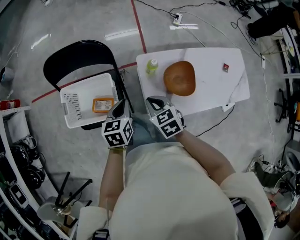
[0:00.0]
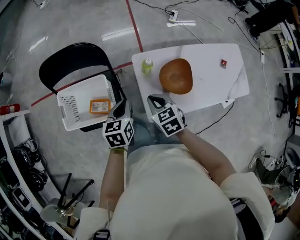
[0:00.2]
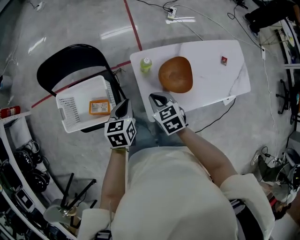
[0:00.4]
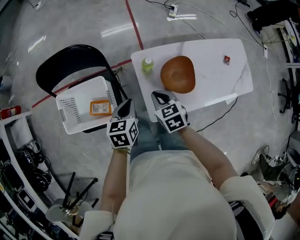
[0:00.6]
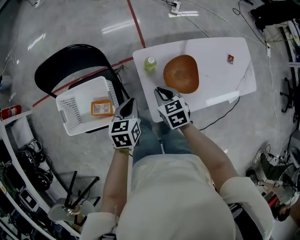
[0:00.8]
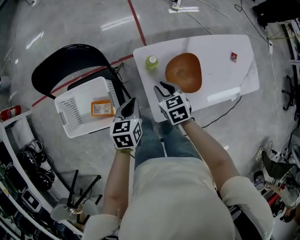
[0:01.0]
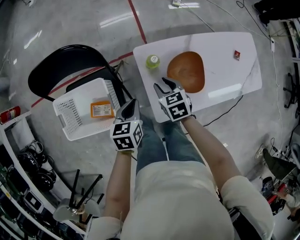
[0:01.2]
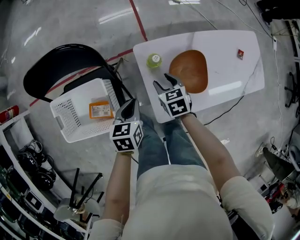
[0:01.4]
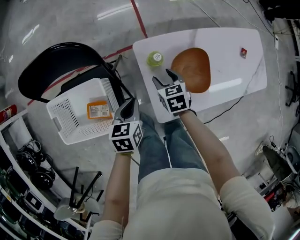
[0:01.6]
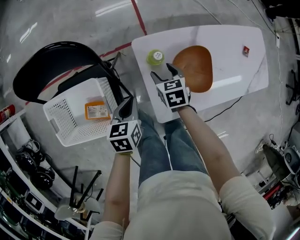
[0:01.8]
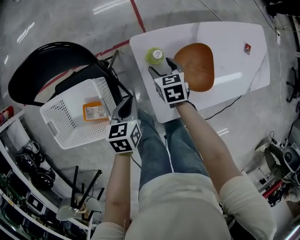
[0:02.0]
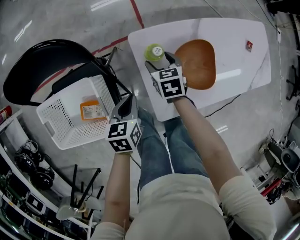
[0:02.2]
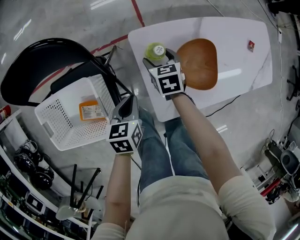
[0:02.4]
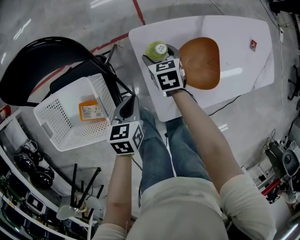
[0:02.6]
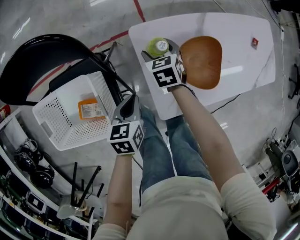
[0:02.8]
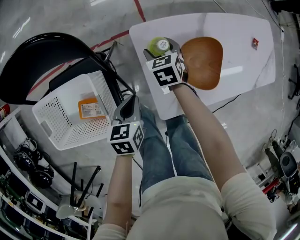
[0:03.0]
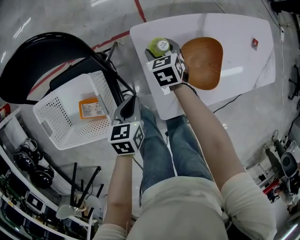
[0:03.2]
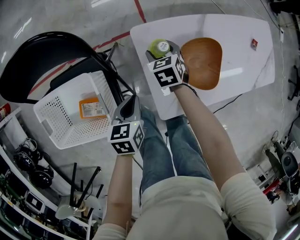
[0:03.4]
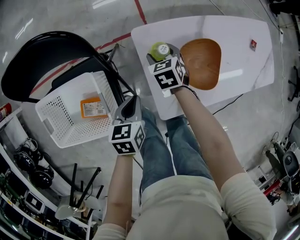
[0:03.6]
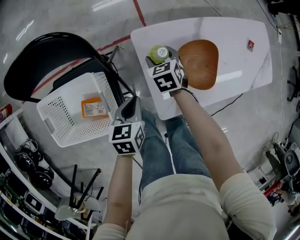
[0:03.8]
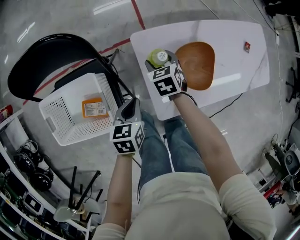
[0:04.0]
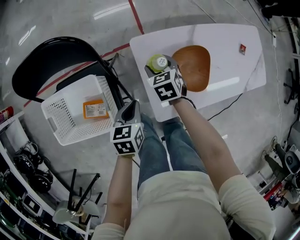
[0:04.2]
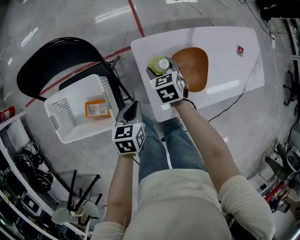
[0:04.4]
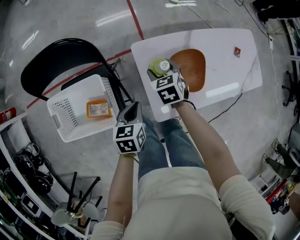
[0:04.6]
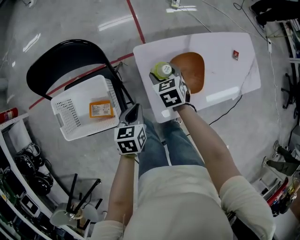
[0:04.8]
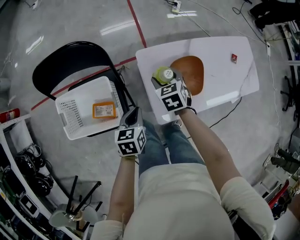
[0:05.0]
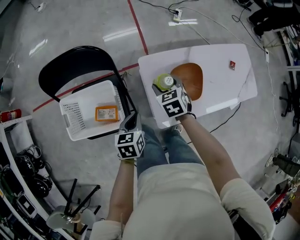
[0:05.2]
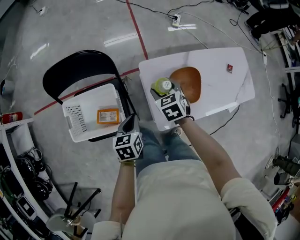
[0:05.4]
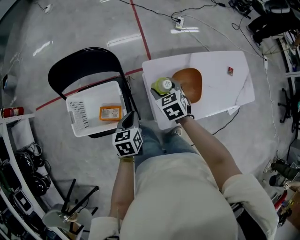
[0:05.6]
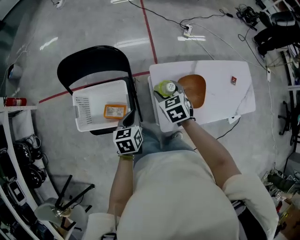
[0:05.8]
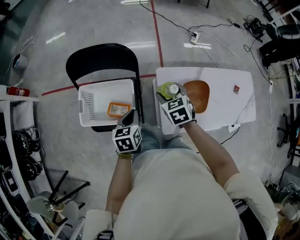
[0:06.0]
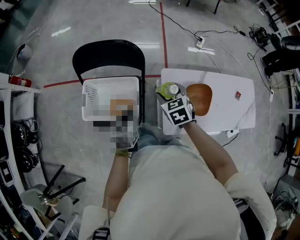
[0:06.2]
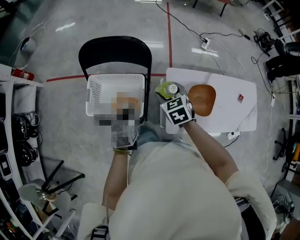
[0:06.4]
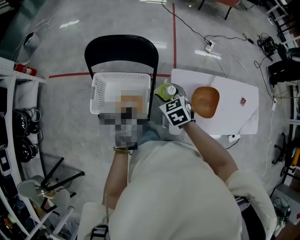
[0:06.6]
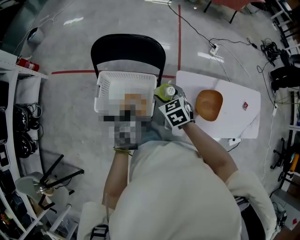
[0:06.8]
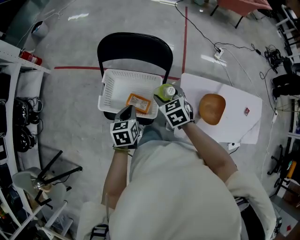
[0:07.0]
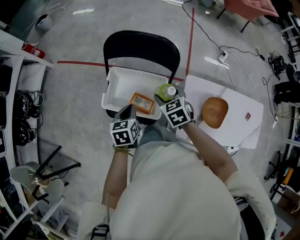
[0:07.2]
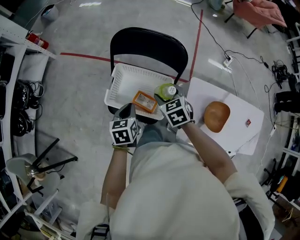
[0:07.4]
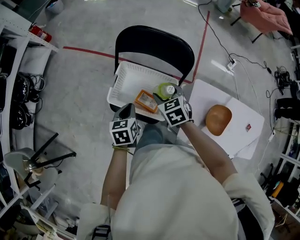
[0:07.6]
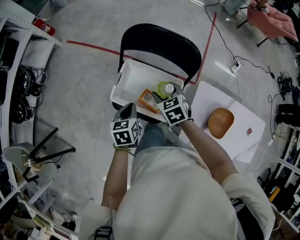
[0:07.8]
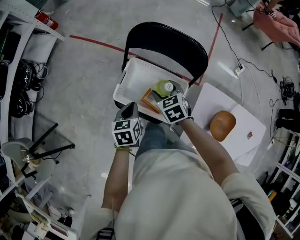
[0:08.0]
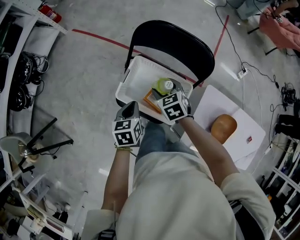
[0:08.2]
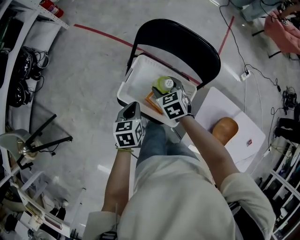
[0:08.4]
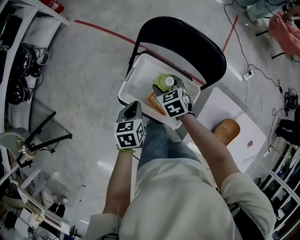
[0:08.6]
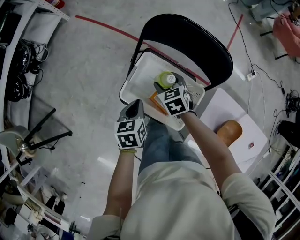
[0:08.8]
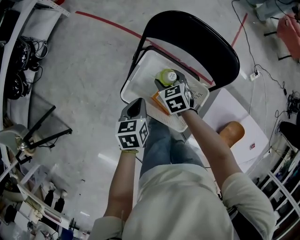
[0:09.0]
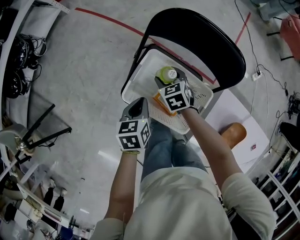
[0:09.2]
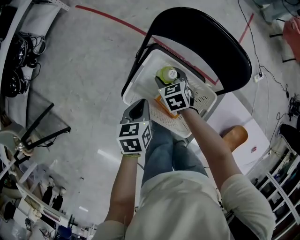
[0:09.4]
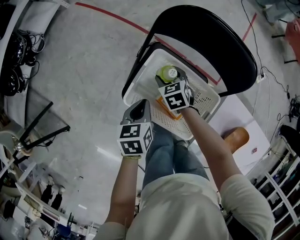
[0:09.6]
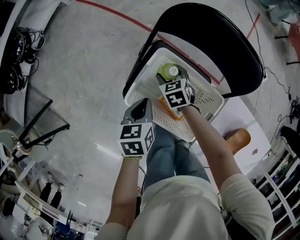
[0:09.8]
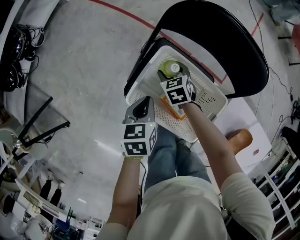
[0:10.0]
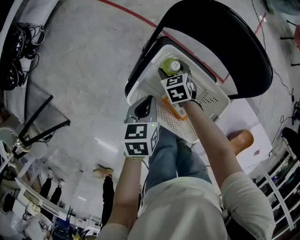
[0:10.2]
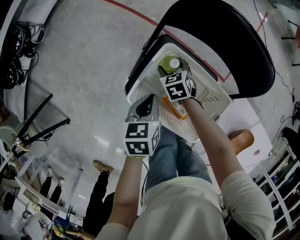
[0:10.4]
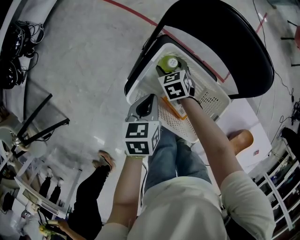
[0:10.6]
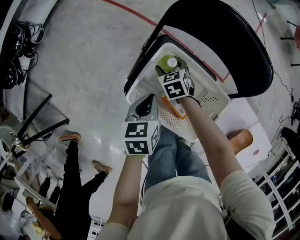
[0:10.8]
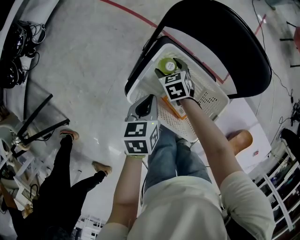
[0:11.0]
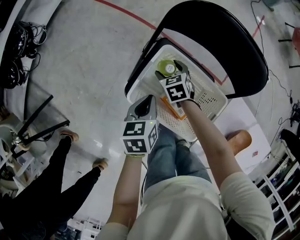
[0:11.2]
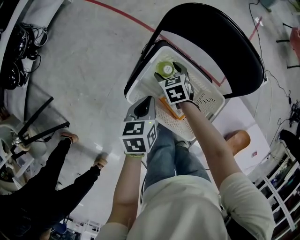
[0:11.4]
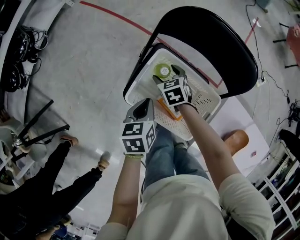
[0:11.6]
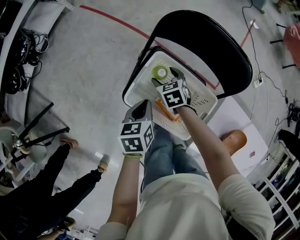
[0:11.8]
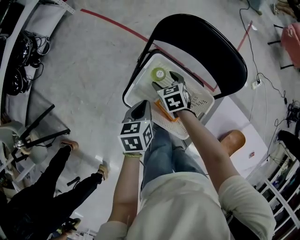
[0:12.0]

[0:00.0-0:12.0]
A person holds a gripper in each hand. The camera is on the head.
0:00.0 to 0:01.6: The right gripper shifts about 20 cm downward, forward and to the right, and opens up, while the left gripper travels downward by roughly 15 cm.
0:01.6 to 0:03.0: The right gripper travels forward and downward by roughly 10 cm. The left gripper moves downward, some 5 cm.
0:03.0 to 0:04.4: Both grippers move upward, roughly 10 cm.
0:04.4 to 0:06.0: The left gripper heads upward and to the left, covering approximately 15 cm. Meanwhile the right gripper goes some 20 cm upward, backward and to the left.
0:06.0 to 0:07.6: Both grippers travel together to the left, roughly 25 cm. The left gripper rotates roughly 20 degrees; the right gripper turns by some 30 degrees.
0:07.6 to 0:09.0: The left gripper moves downward, forward and to the left, about 10 cm. Meanwhile the right gripper goes some 20 cm downward, forward and to the left.
0:09.0 to 0:10.4: The right gripper goes roughly 15 cm downward. Meanwhile the left gripper shifts some 5 cm downward.
0:10.4 to 0:12.0: The right gripper travels upward by approximately 10 cm.

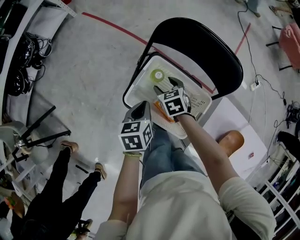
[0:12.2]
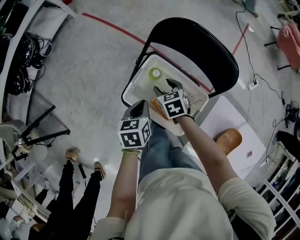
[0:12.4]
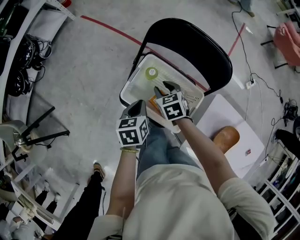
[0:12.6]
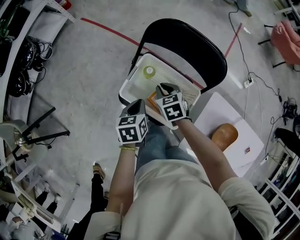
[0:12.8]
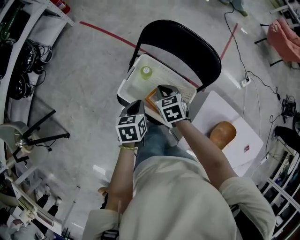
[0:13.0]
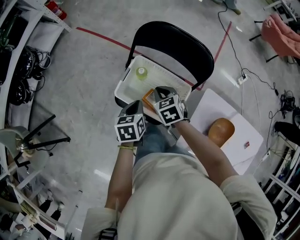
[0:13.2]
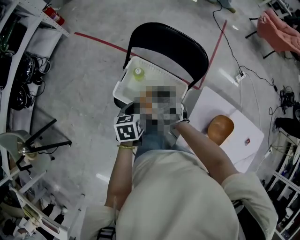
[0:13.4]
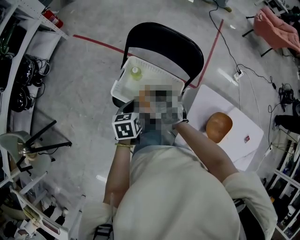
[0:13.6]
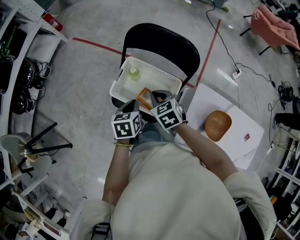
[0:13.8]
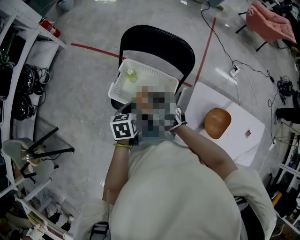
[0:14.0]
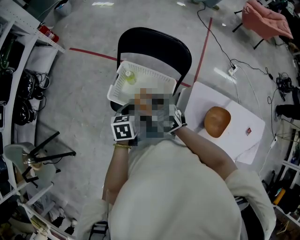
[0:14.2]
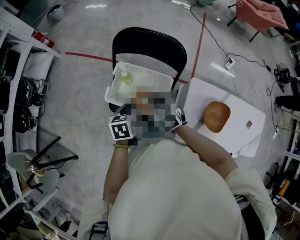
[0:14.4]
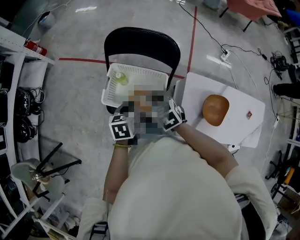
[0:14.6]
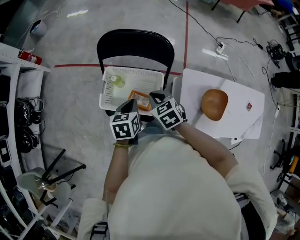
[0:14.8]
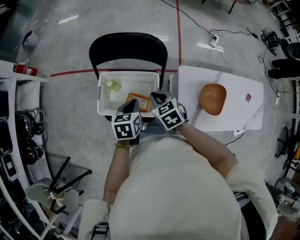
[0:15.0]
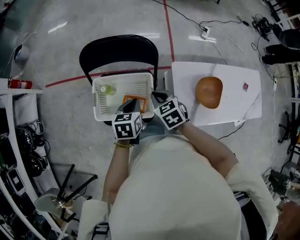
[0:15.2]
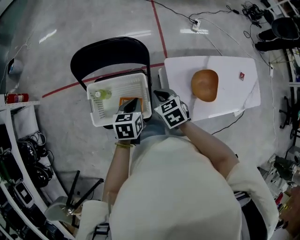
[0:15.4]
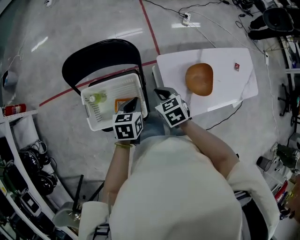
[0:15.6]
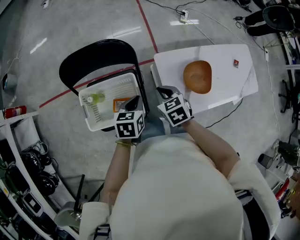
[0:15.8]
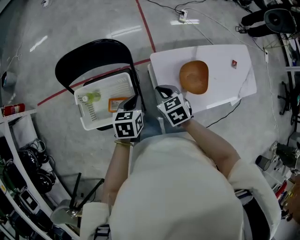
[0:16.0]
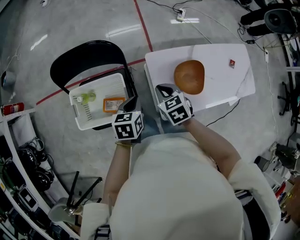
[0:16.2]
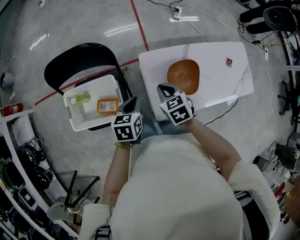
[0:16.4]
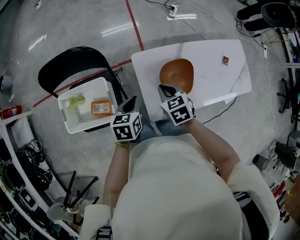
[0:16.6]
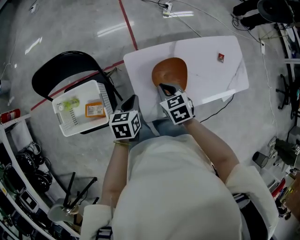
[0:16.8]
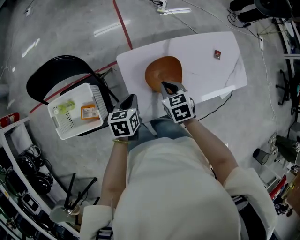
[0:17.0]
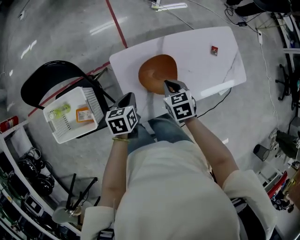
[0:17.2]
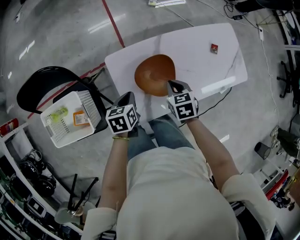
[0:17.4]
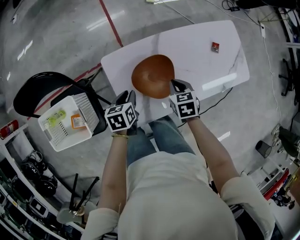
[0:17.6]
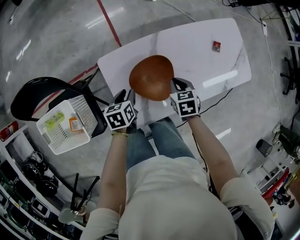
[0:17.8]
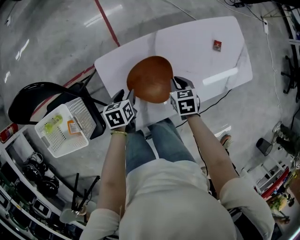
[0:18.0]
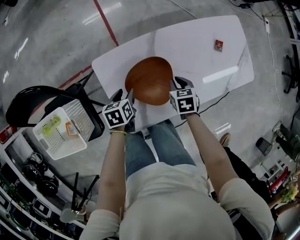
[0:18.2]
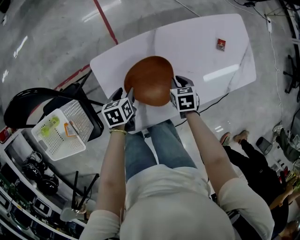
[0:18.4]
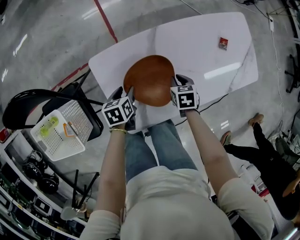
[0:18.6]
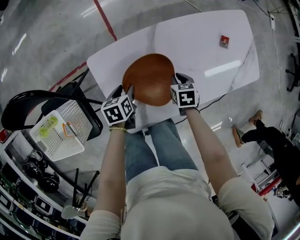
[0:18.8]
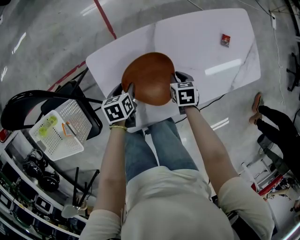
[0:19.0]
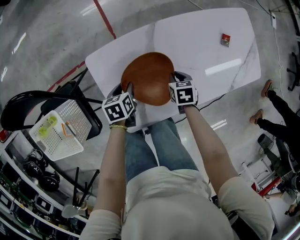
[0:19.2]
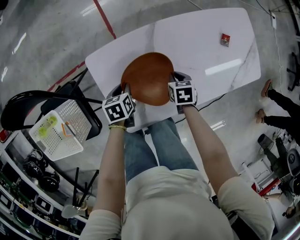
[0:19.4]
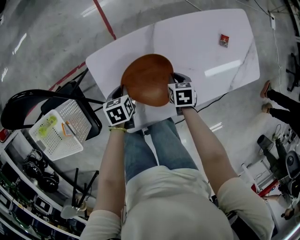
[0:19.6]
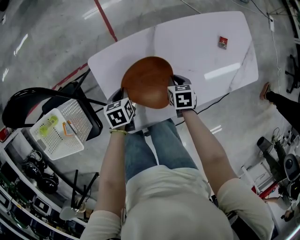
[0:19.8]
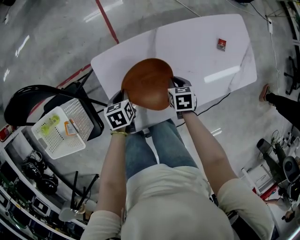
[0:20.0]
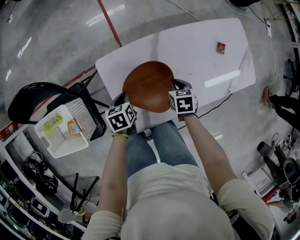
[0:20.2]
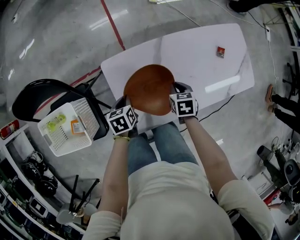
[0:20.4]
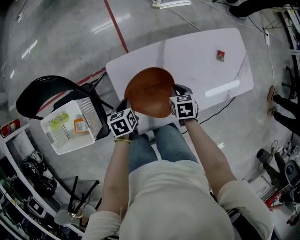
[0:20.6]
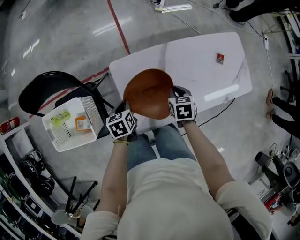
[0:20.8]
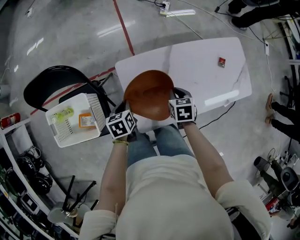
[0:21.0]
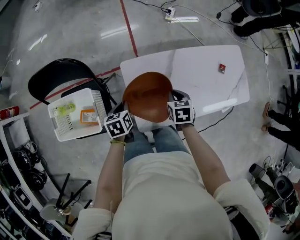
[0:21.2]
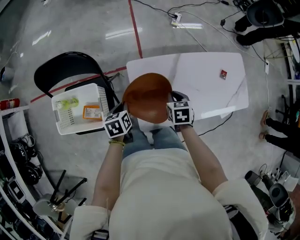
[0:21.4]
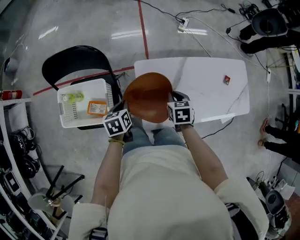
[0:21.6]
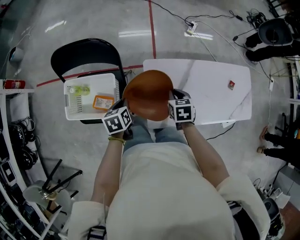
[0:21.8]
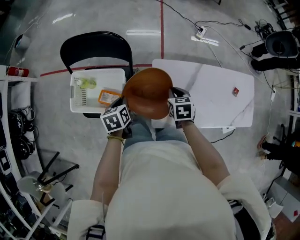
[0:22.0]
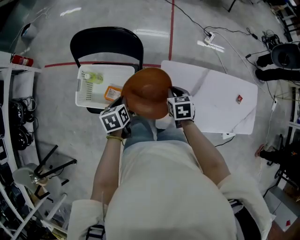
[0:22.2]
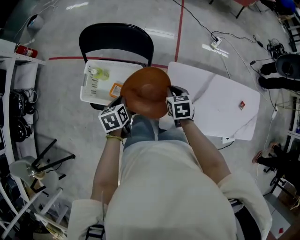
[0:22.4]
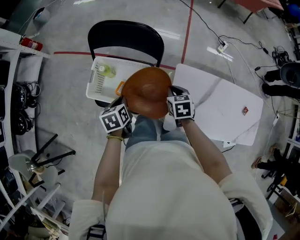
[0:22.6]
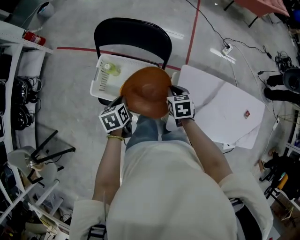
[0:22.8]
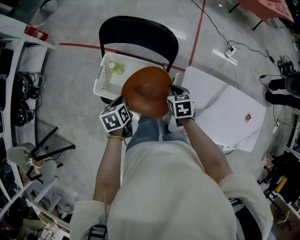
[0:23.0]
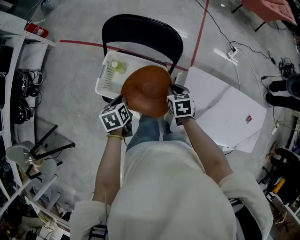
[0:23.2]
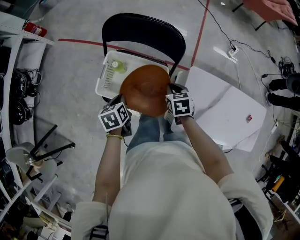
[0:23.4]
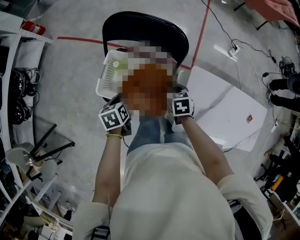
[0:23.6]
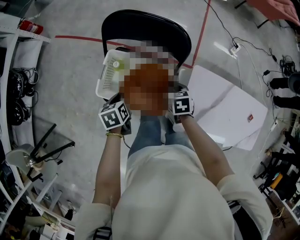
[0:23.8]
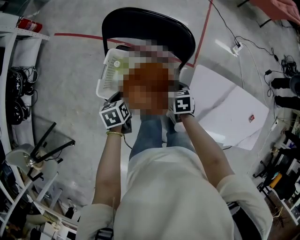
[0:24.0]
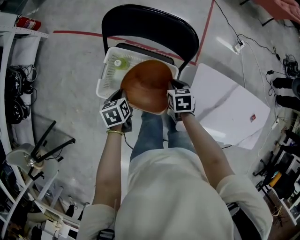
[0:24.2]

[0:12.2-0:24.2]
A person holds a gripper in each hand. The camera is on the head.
0:12.2 to 0:13.8: The left gripper moves upward, backward and to the right, approximately 10 cm; the right gripper heads upward and backward, covering about 20 cm, and closes up.
0:13.8 to 0:15.2: The left gripper changes place by about 10 cm, and turns by some 30 degrees; the right gripper shifts by approximately 10 cm, and swivels about 30 degrees.
0:15.2 to 0:16.6: Both grippers move to the right, some 25 cm.
0:16.6 to 0:18.2: The right gripper goes about 30 cm to the right and downward, and rotates roughly 30 degrees. The left gripper moves downward, to the right and forward, some 25 cm, and opens its fingers.
0:18.2 to 0:19.8: The left gripper closes its fingers.
0:19.8 to 0:21.2: The grippers both shift upward and to the left by about 20 cm.
0:21.2 to 0:22.6: The right gripper ends up some 30 cm from where it was, and changes its angle by roughly 30 degrees, while the left gripper ends up roughly 30 cm from where it was, and changes its angle by approximately 30 degrees.
0:22.6 to 0:24.2: The two grippers go roughly 15 cm to the left, downward and forward.
